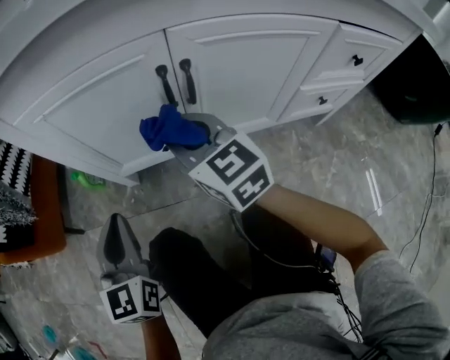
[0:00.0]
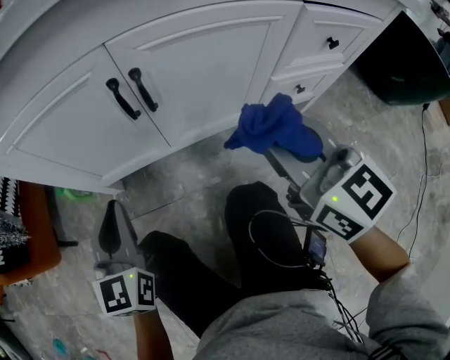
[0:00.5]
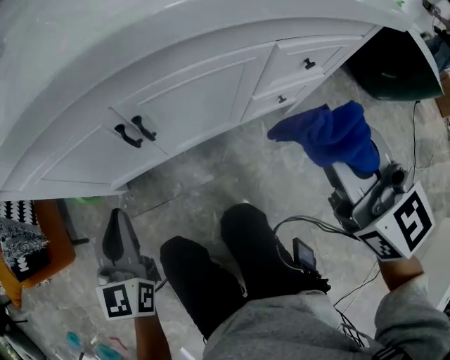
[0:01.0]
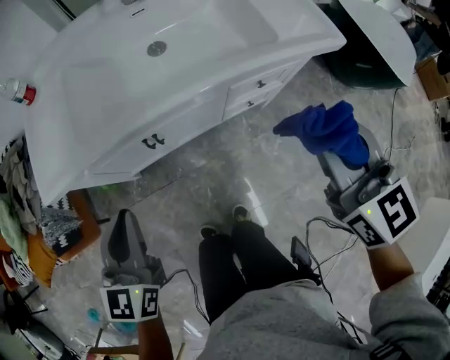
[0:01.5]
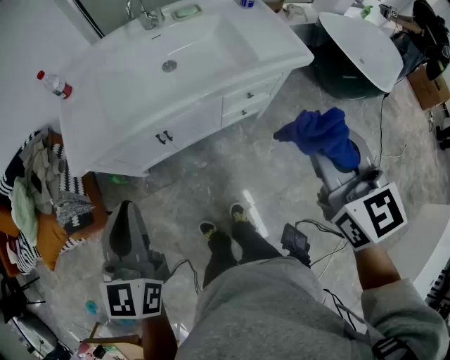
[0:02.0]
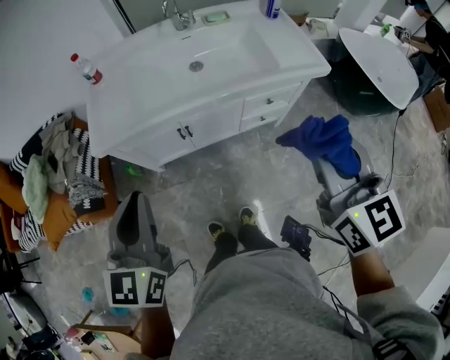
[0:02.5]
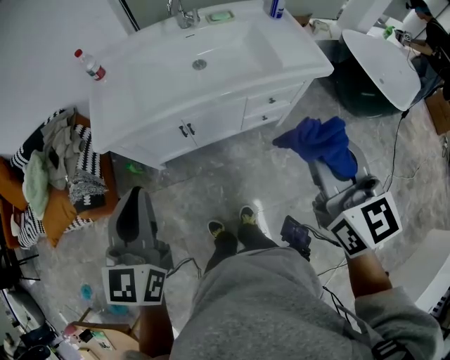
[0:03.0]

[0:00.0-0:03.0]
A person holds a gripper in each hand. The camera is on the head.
0:00.0 to 0:01.5: Both grippers move upward, roughly 40 cm. The left gripper turns by roughly 20 degrees. Meanwhile the right gripper changes its angle by some 30 degrees.
0:01.5 to 0:03.0: The two grippers go roughly 20 cm upward and backward.

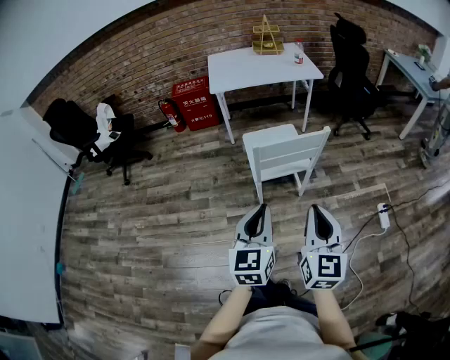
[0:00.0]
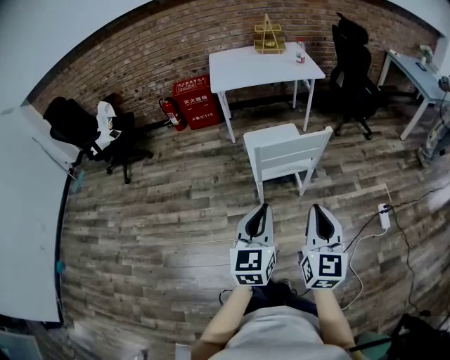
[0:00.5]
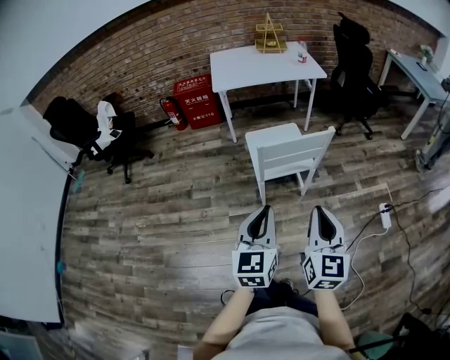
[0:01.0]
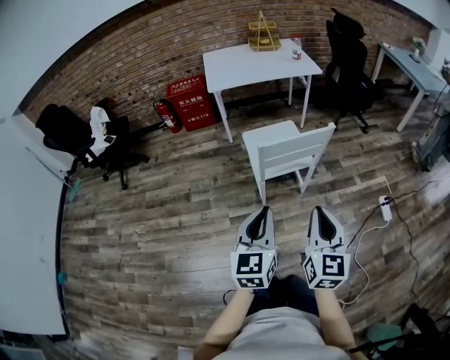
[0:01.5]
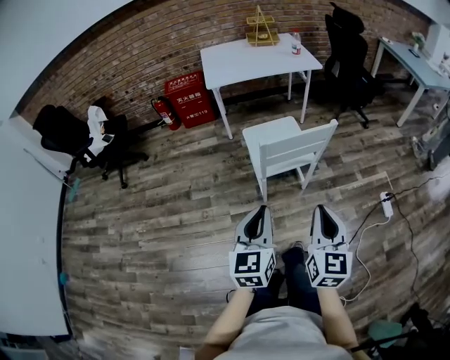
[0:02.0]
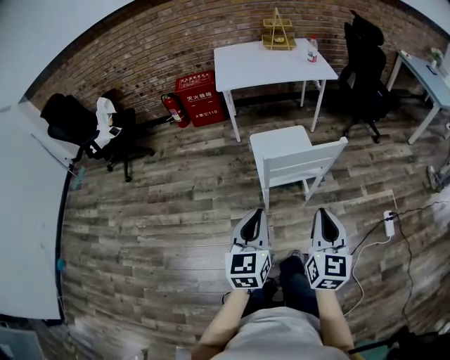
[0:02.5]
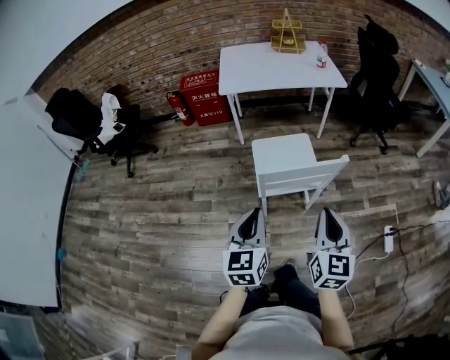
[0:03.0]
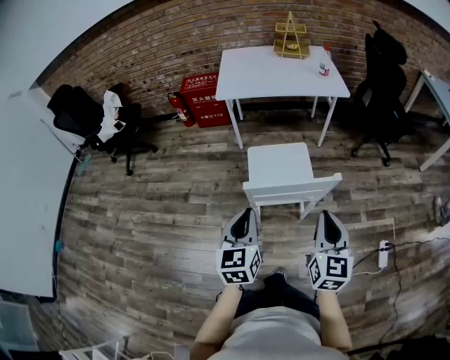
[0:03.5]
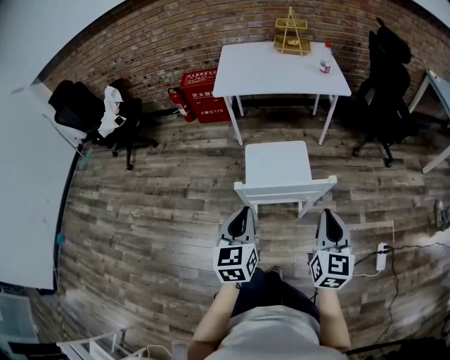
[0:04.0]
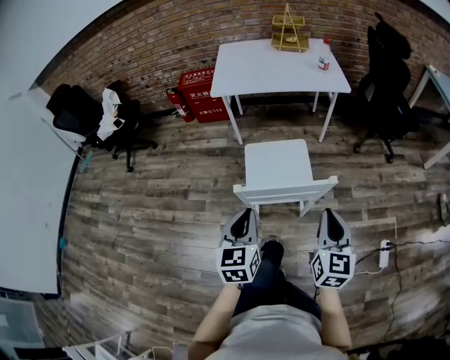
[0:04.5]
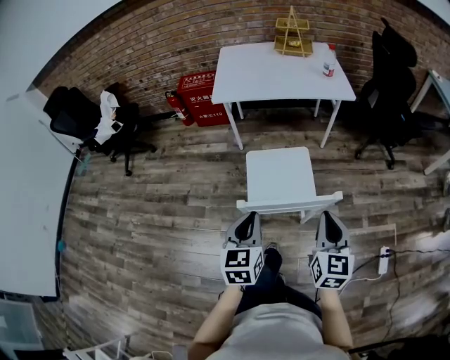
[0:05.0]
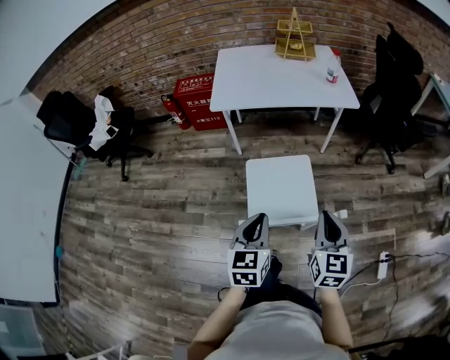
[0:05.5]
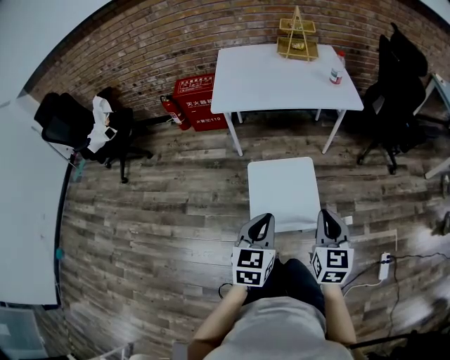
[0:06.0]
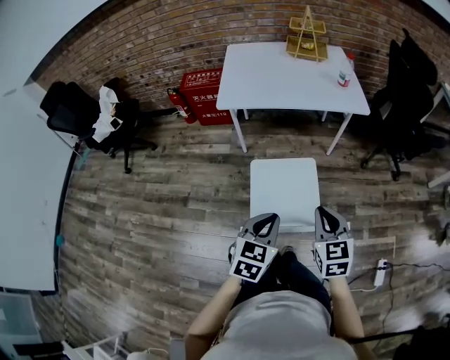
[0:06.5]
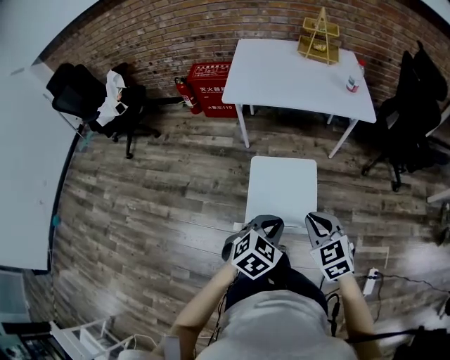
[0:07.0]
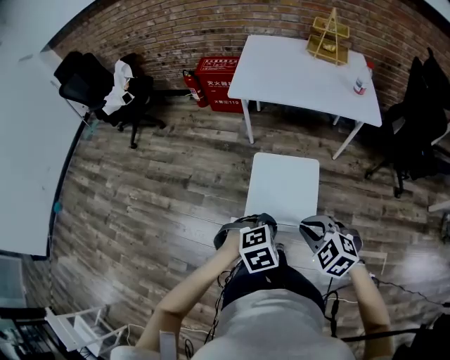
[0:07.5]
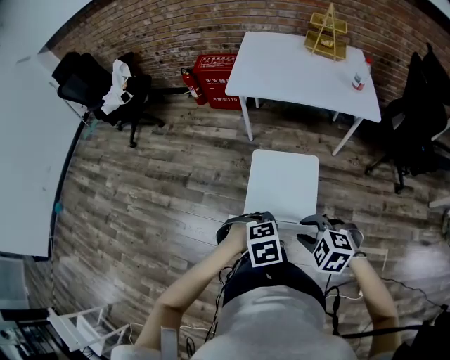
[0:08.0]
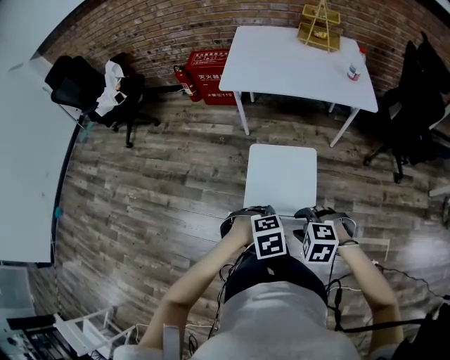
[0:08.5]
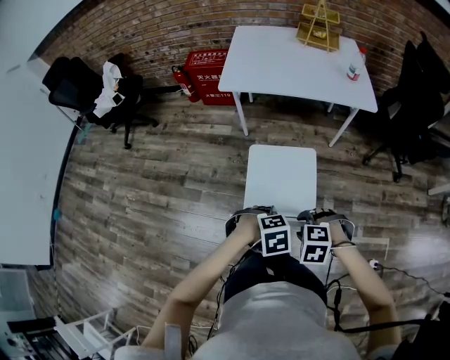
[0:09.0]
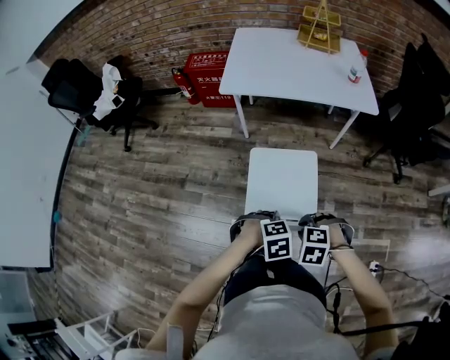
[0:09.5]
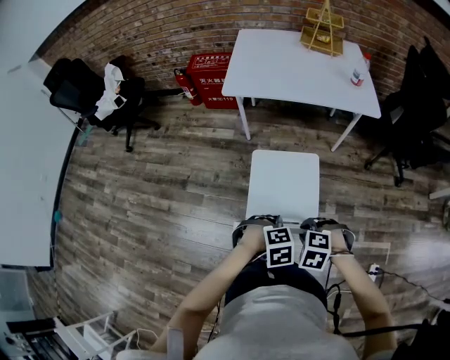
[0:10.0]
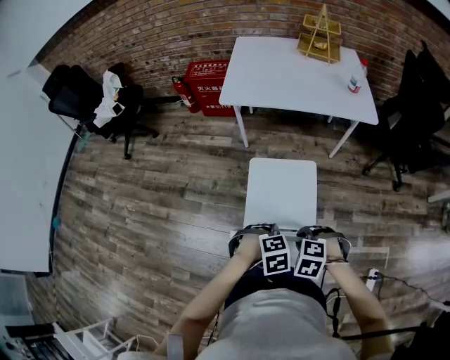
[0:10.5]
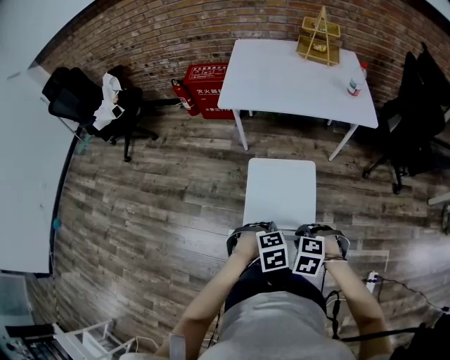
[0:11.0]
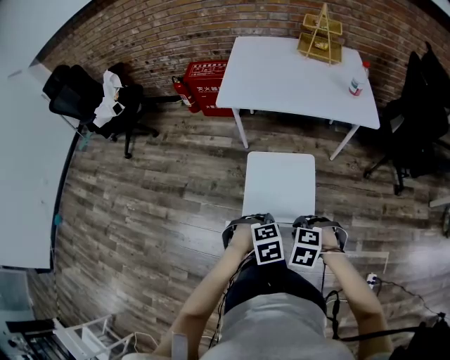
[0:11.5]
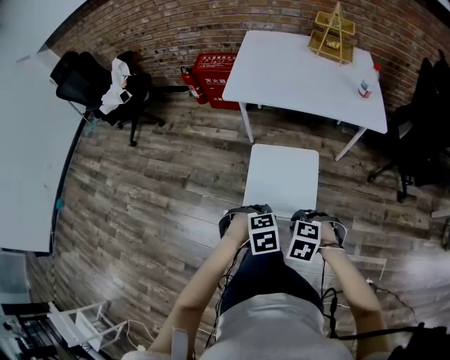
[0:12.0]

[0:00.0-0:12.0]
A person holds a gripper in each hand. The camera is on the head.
0:00.0 to 0:02.0: The left gripper ends up some 5 cm from where it was.
0:02.0 to 0:04.0: The two grippers go approximately 25 cm forward and to the right.
0:04.0 to 0:06.0: The grippers both shift forward by approximately 15 cm.
0:06.0 to 0:08.0: The right gripper is displaced downward by some 5 cm, tips its fingers downward by approximately 40 degrees, and opens up, while the left gripper moves roughly 10 cm, points its fingers approximately 50 degrees further downward, and opens its fingers.
0:08.0 to 0:10.0: The two grippers go about 5 cm downward.
0:10.0 to 0:12.0: The left gripper ends up roughly 10 cm from where it was, while the right gripper ends up approximately 10 cm from where it was.

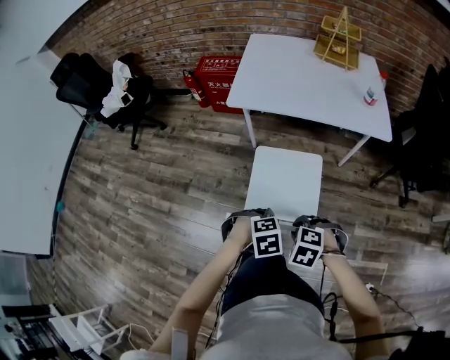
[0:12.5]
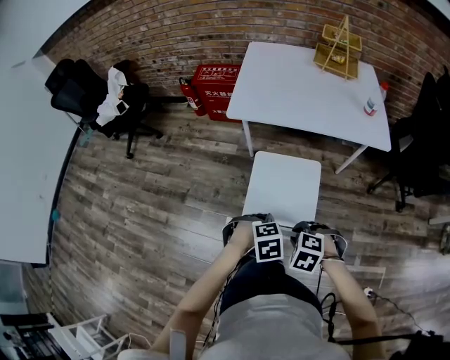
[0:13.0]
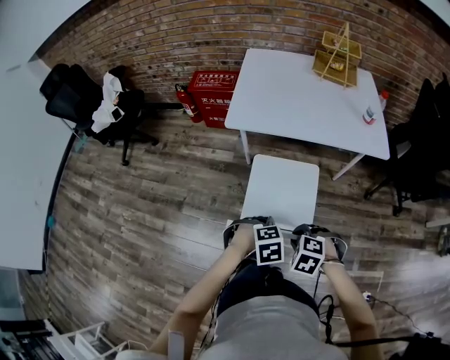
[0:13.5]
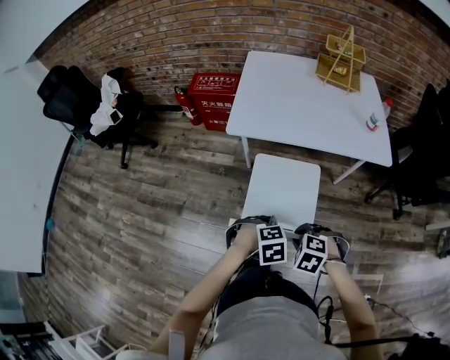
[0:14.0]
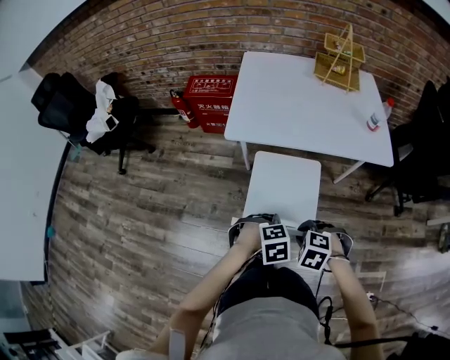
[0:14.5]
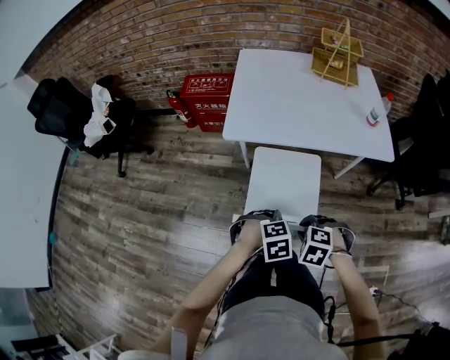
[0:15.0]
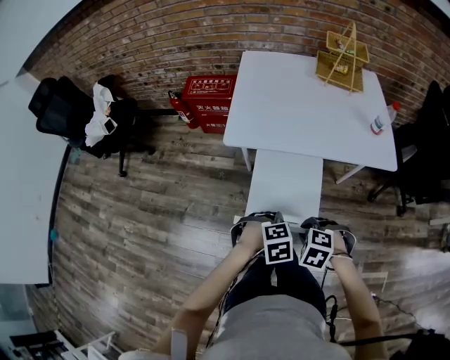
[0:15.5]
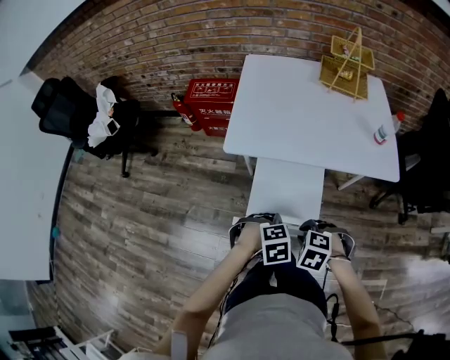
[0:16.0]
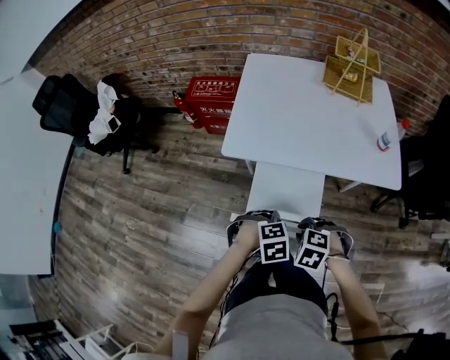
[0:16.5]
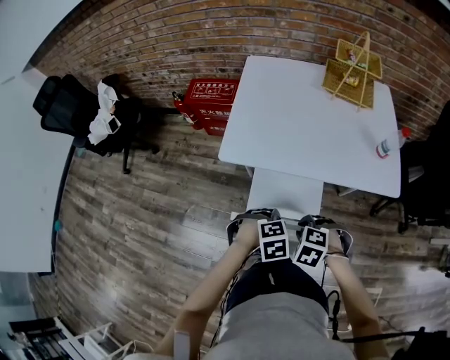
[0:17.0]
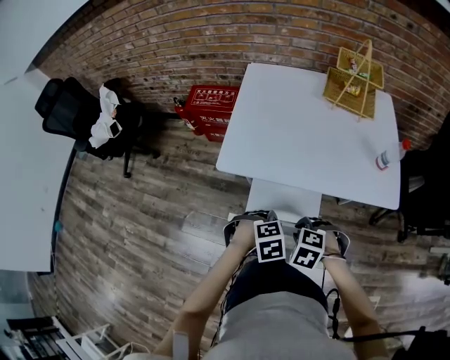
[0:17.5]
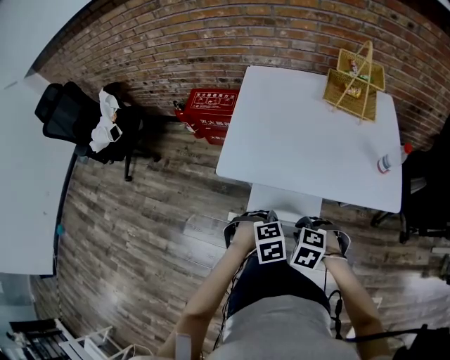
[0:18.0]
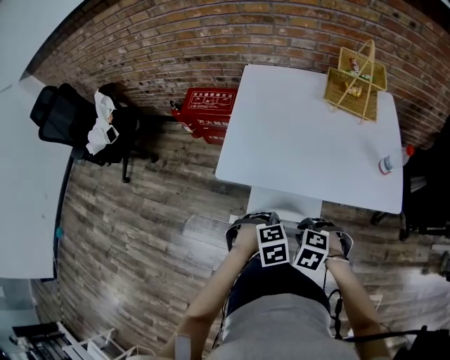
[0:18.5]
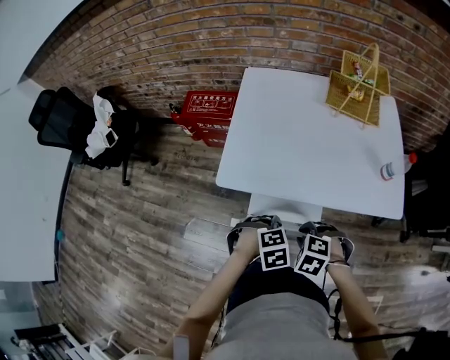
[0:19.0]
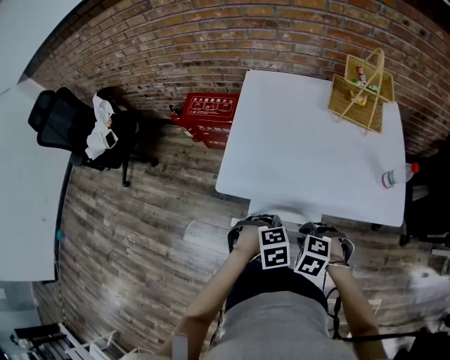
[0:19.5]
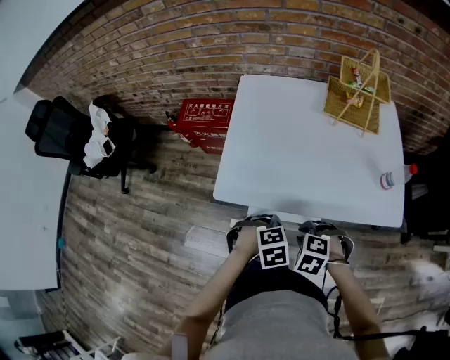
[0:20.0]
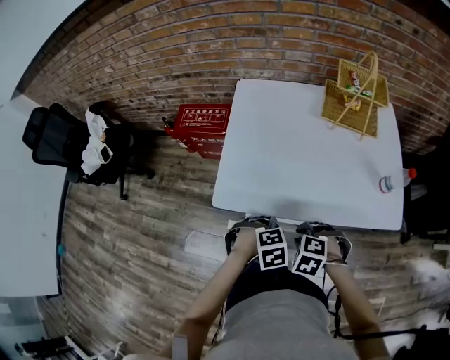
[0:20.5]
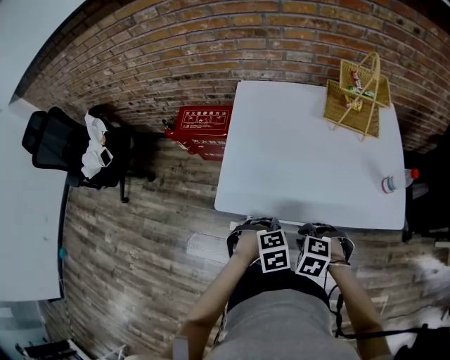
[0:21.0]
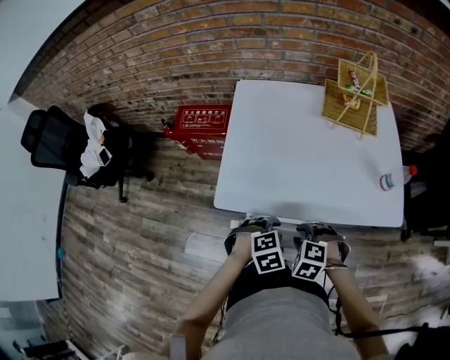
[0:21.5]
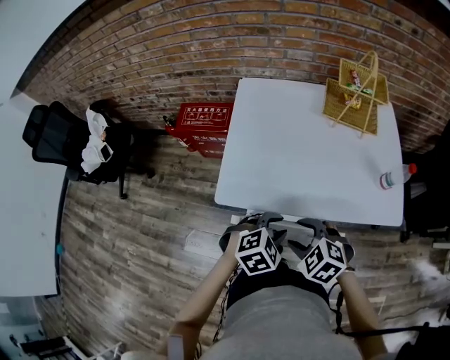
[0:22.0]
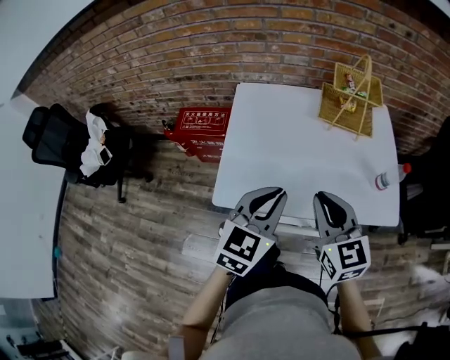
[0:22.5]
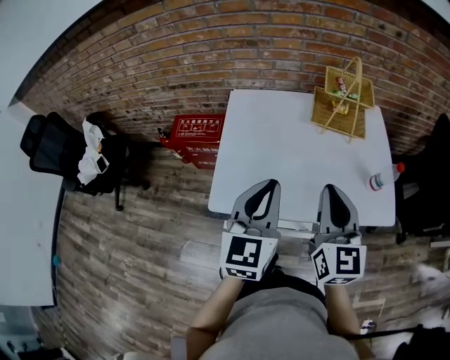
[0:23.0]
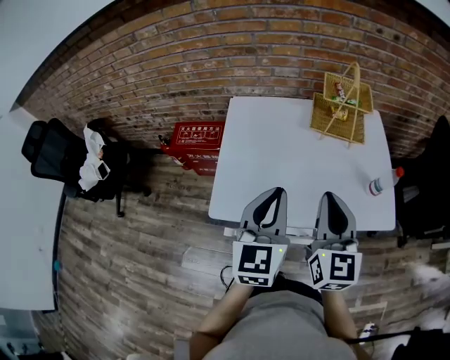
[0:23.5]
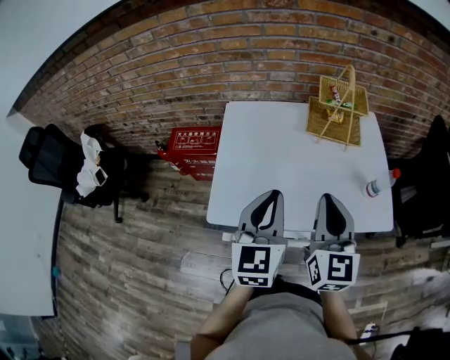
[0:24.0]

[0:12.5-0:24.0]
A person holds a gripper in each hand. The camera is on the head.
0:12.5 to 0:14.5: The right gripper moves roughly 15 cm. The left gripper moves about 15 cm.
0:14.5 to 0:16.5: The left gripper changes place by some 10 cm; the right gripper moves about 10 cm.
0:16.5 to 0:18.5: The left gripper ends up roughly 10 cm from where it was. Meanwhile the right gripper moves some 10 cm.
0:18.5 to 0:20.0: The right gripper changes place by roughly 5 cm, while the left gripper ends up roughly 5 cm from where it was.
0:20.0 to 0:22.0: Both grippers move upward, about 5 cm. The left gripper turns by approximately 20 degrees, while the right gripper turns by approximately 20 degrees, and opens.
0:22.0 to 0:24.0: The left gripper shifts roughly 20 cm upward and forward, angles its fingers upward, by about 50 degrees, and closes up; the right gripper travels upward, forward and to the right by about 25 cm, tips its fingers upward by about 50 degrees, and closes its fingers.
